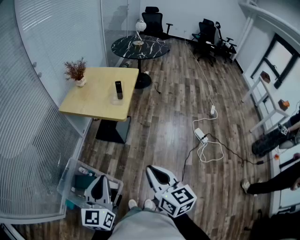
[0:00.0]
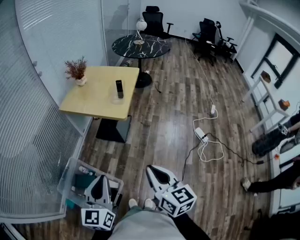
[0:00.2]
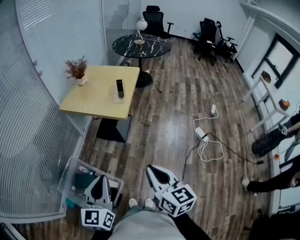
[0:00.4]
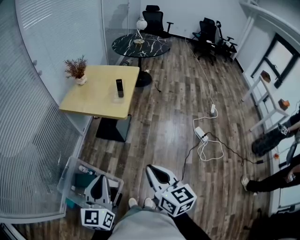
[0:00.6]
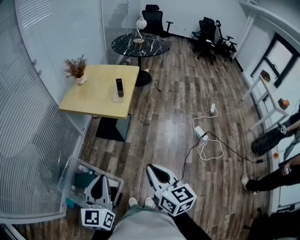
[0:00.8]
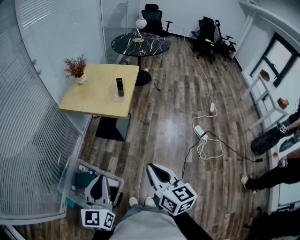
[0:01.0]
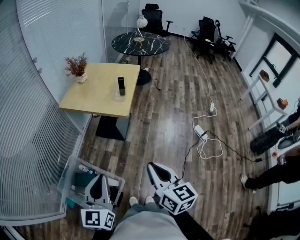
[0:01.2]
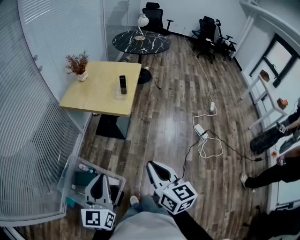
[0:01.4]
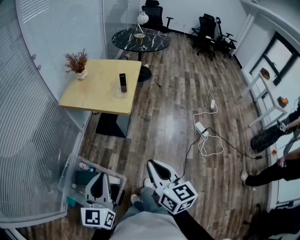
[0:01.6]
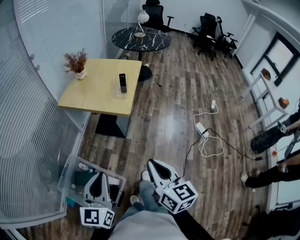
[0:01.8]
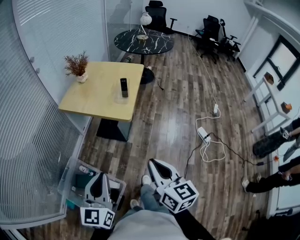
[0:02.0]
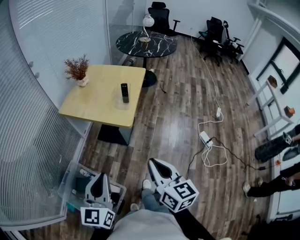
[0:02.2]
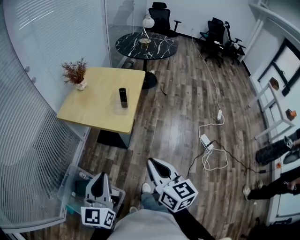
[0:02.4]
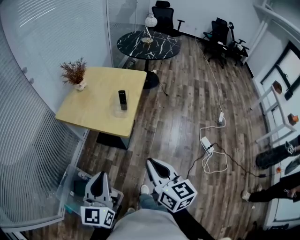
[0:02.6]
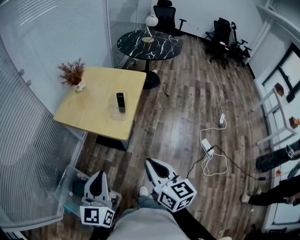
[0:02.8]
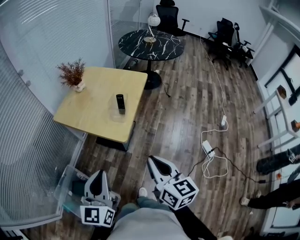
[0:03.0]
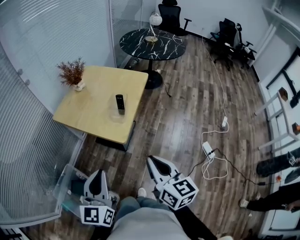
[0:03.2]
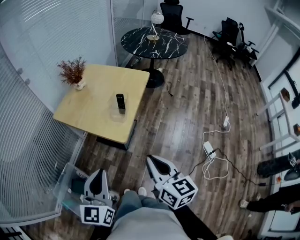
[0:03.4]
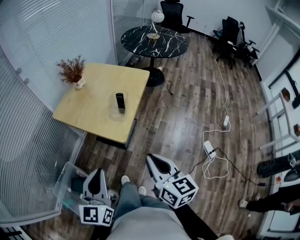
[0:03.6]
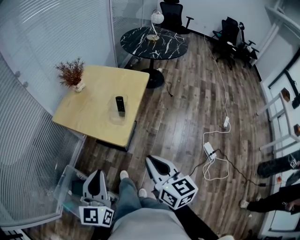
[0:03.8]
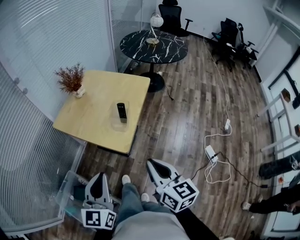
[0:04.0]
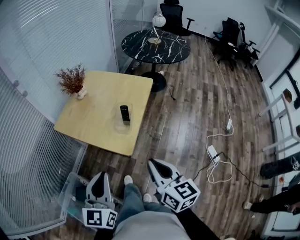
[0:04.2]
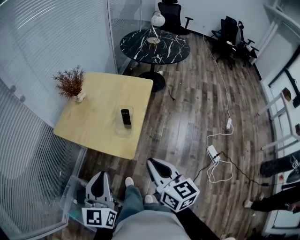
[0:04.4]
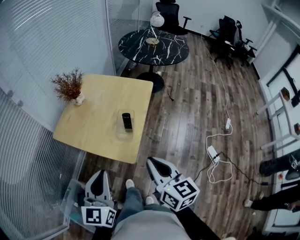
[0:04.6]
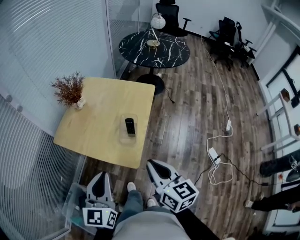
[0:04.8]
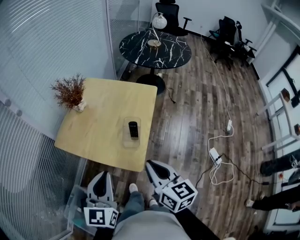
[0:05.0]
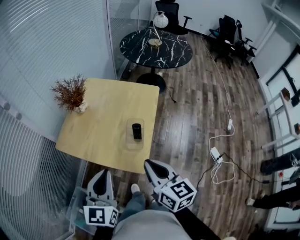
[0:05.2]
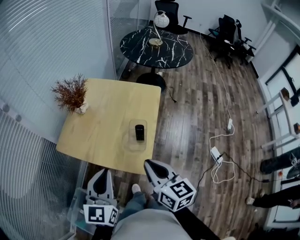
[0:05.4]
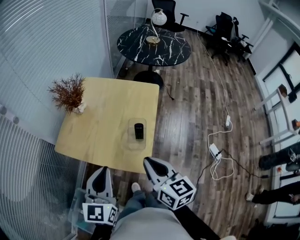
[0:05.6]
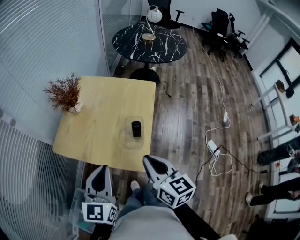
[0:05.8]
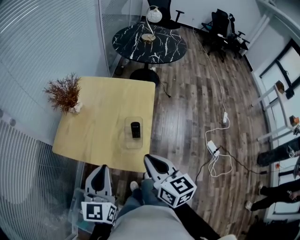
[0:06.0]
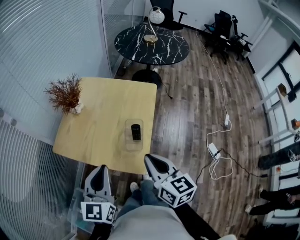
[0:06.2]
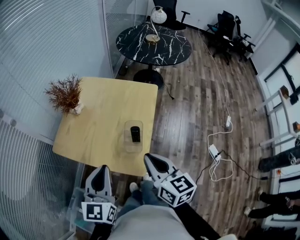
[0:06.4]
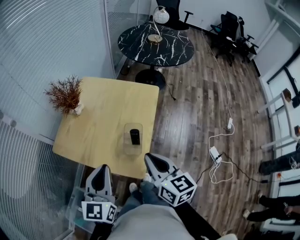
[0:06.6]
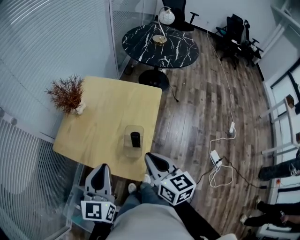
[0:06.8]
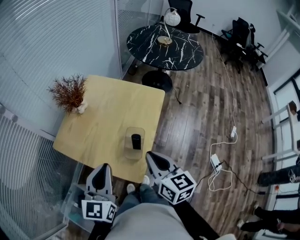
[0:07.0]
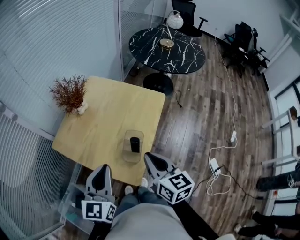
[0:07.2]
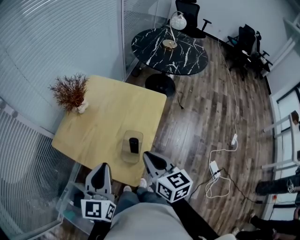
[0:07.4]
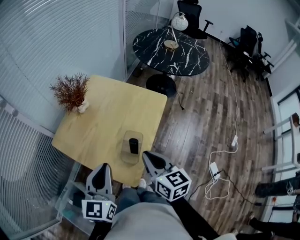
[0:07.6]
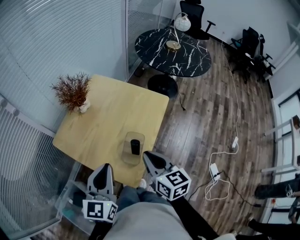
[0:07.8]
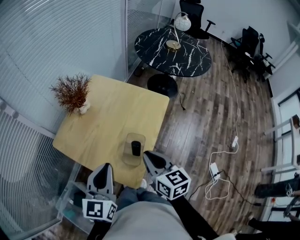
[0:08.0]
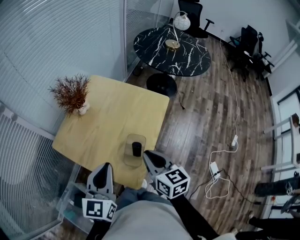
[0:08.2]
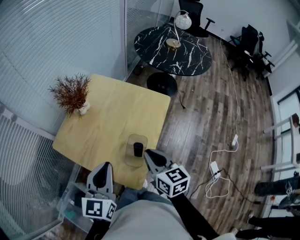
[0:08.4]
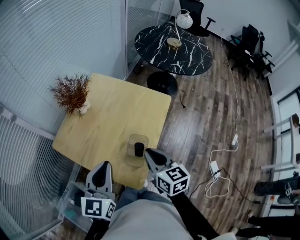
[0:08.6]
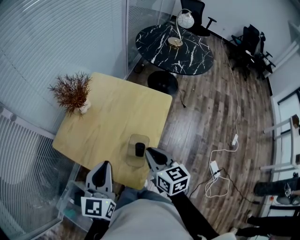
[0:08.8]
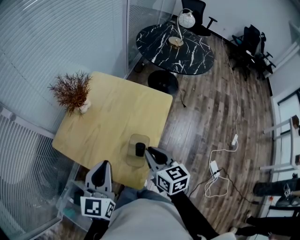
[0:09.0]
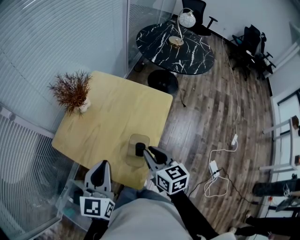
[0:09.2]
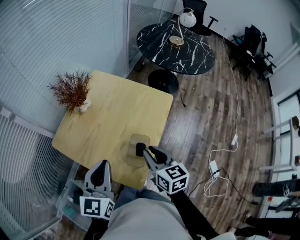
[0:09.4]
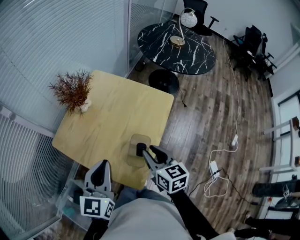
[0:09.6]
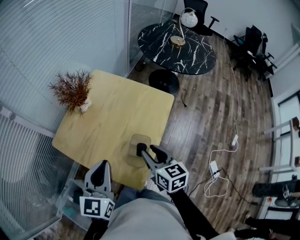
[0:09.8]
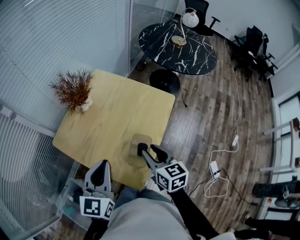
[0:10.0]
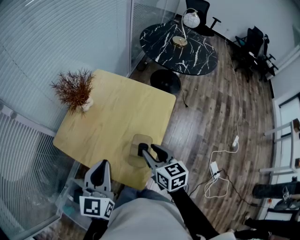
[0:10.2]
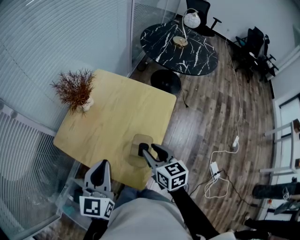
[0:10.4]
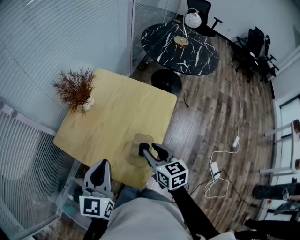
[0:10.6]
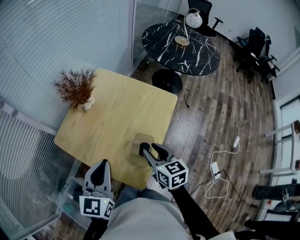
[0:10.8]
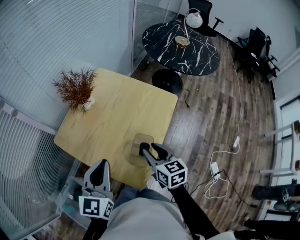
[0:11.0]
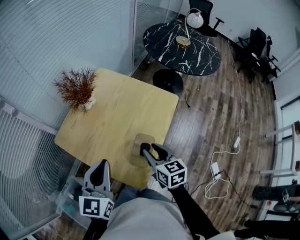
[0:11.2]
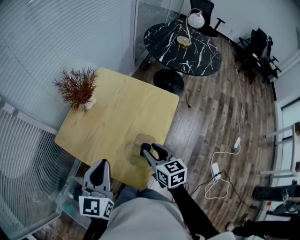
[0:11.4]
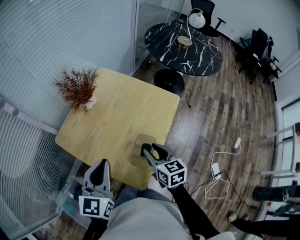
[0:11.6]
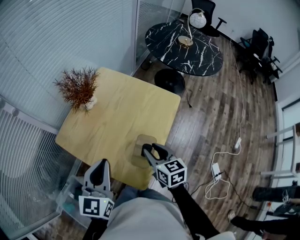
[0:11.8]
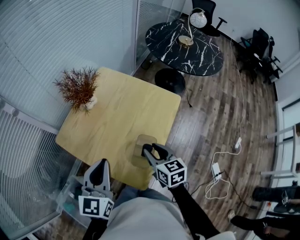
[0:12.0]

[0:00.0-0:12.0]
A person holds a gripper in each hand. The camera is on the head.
0:00.0 to 0:01.6: The grippers make only small movements.
0:01.6 to 0:03.0: Both grippers travel together forward and to the right, about 25 cm.
0:03.0 to 0:04.4: Both grippers move forward, some 10 cm.
0:04.4 to 0:06.0: The left gripper is displaced forward by roughly 15 cm, while the right gripper travels forward and to the left by some 15 cm.
0:06.0 to 0:07.6: The right gripper is displaced forward and to the right by roughly 10 cm, while the left gripper goes about 10 cm to the right and forward.
0:07.6 to 0:09.0: The left gripper changes place by roughly 5 cm, while the right gripper ends up about 5 cm from where it was.
0:09.0 to 0:10.4: The right gripper opens up.
0:10.4 to 0:12.0: There are only small adjustments of the grippers.

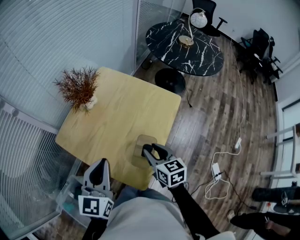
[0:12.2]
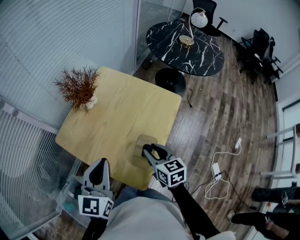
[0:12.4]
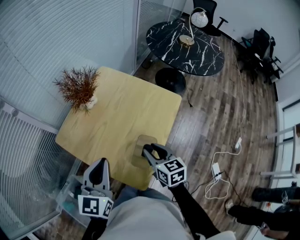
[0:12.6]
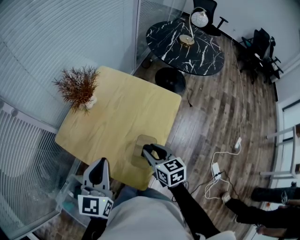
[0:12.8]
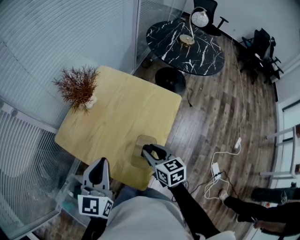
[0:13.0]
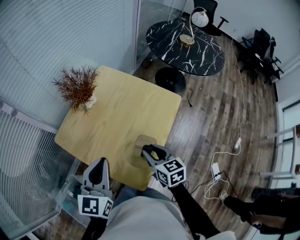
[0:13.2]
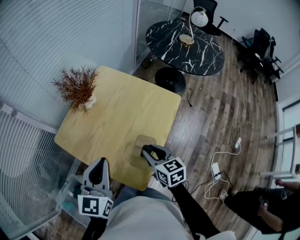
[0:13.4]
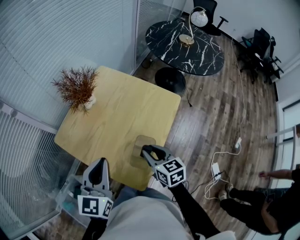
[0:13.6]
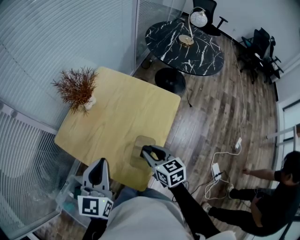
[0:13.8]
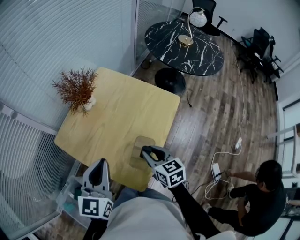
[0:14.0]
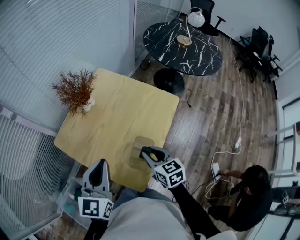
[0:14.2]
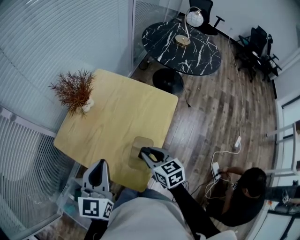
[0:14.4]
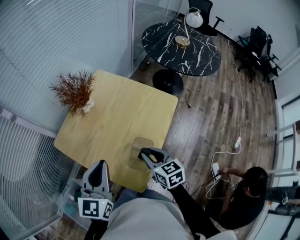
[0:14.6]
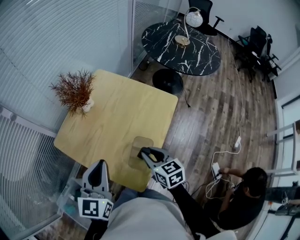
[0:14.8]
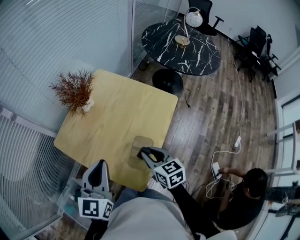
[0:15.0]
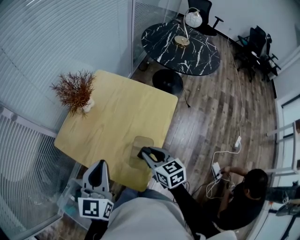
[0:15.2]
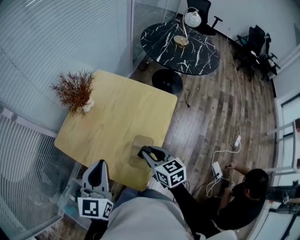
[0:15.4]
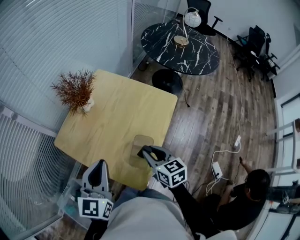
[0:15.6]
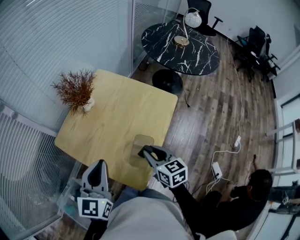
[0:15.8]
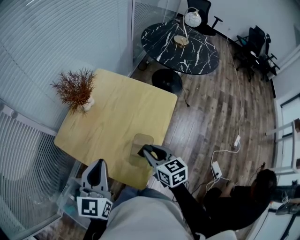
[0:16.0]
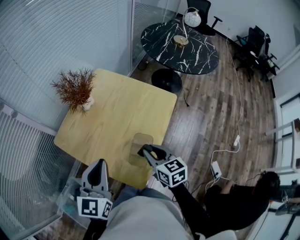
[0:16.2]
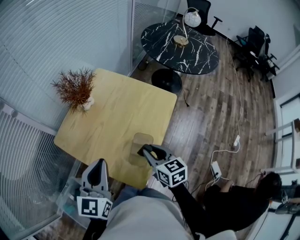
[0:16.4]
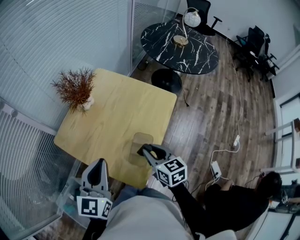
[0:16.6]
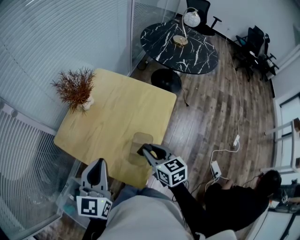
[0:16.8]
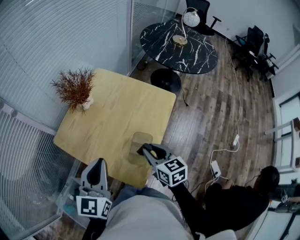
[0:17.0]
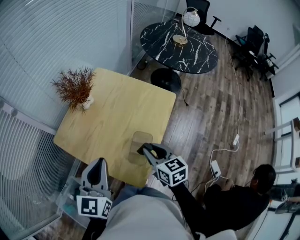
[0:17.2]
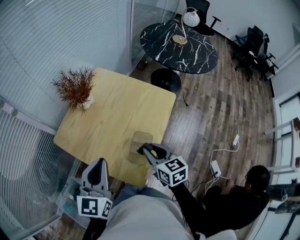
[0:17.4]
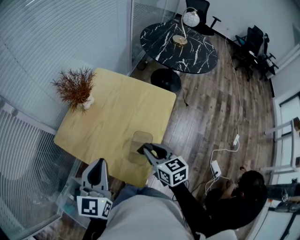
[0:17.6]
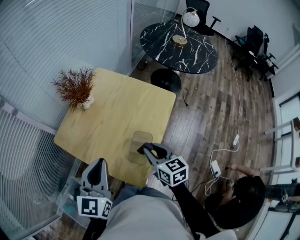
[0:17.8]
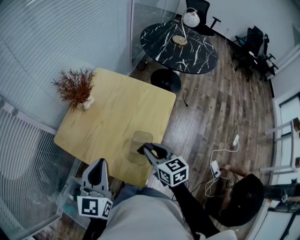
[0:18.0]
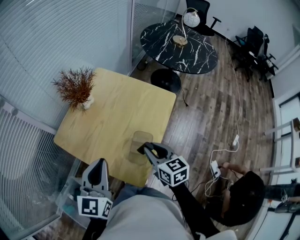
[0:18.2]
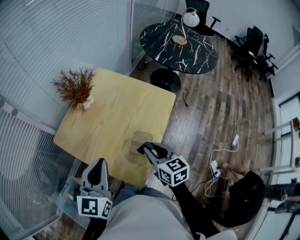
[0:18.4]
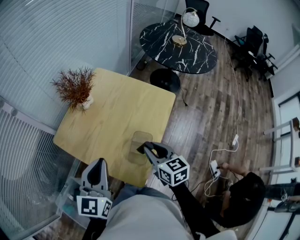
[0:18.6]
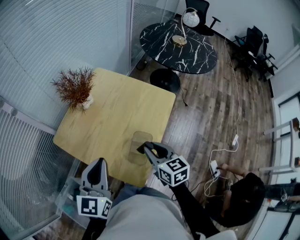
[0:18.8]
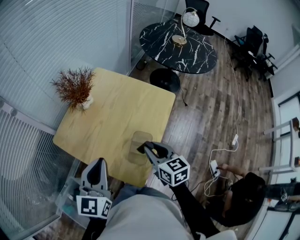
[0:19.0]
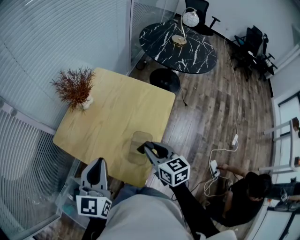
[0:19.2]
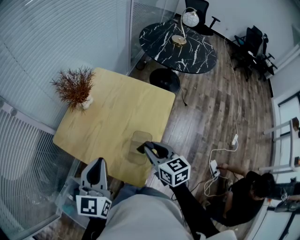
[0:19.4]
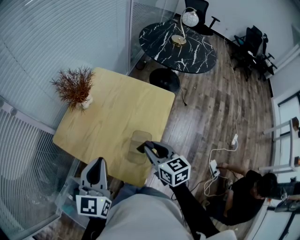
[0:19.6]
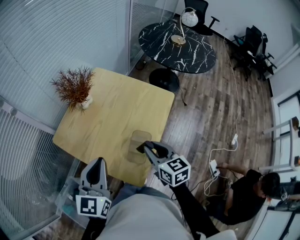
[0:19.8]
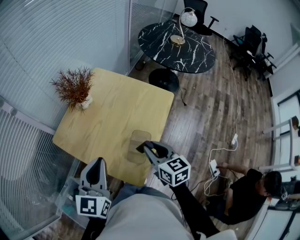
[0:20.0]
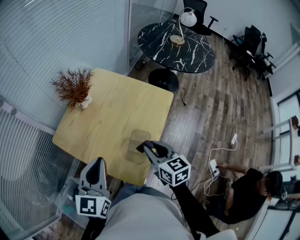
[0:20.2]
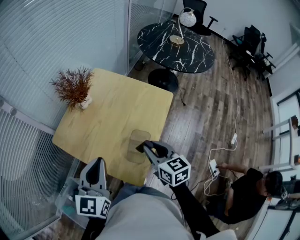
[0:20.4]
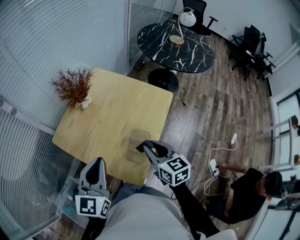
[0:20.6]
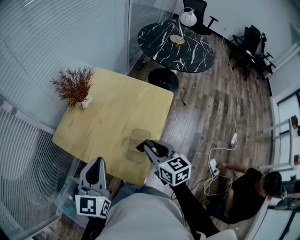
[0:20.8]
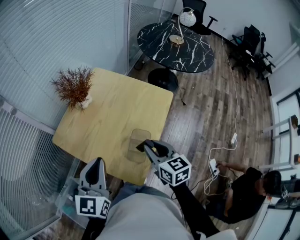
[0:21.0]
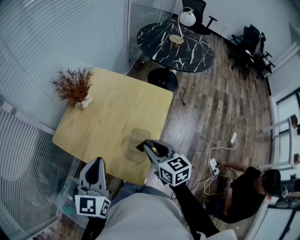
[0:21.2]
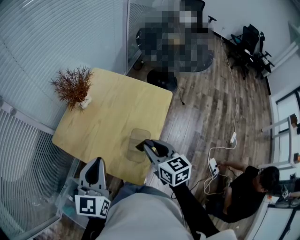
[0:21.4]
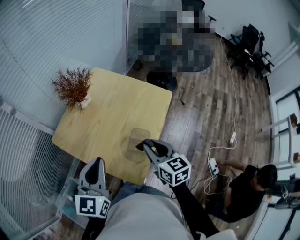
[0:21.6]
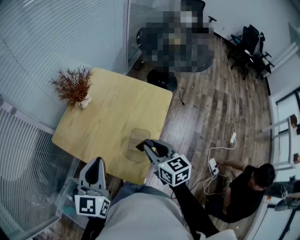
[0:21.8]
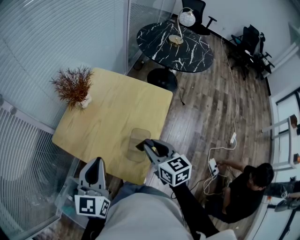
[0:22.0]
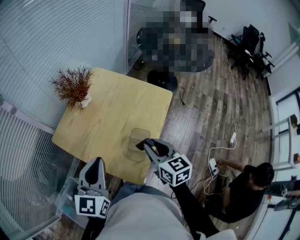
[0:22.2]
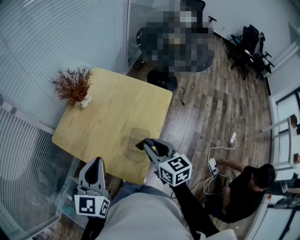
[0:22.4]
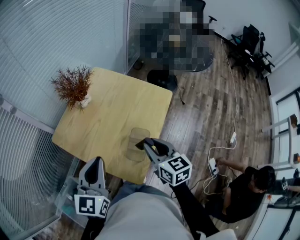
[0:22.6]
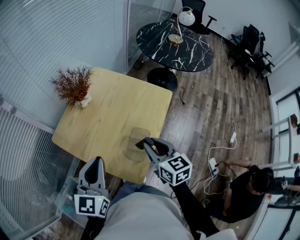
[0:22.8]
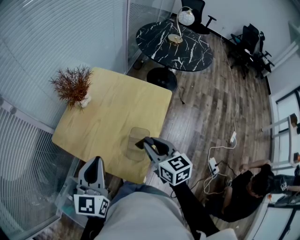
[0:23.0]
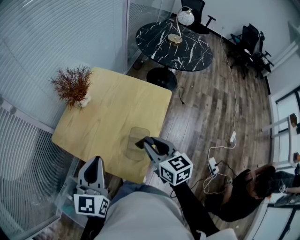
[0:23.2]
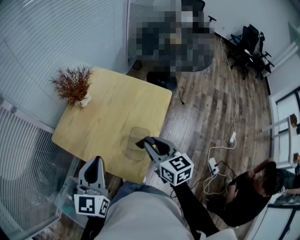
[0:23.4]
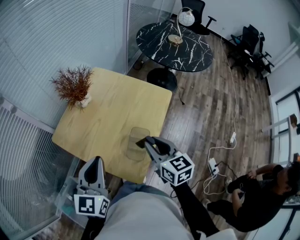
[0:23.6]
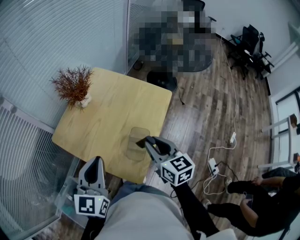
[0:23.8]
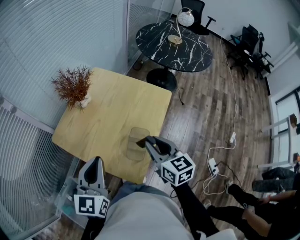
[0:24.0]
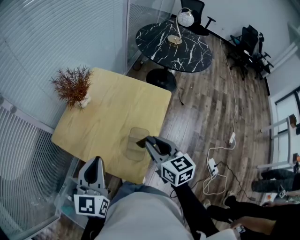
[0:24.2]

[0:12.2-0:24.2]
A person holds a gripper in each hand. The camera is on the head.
0:12.2 to 0:13.8: Both grippers stay put.
0:13.8 to 0:15.2: Both grippers stay about where they are.
0:15.2 to 0:16.6: The two grippers keep their place.
0:16.6 to 0:18.2: Both grippers stay about where they are.
0:18.2 to 0:19.8: Both grippers stay about where they are.
0:19.8 to 0:21.2: Both grippers stay put.
0:21.2 to 0:22.6: Neither gripper changes place.
0:22.6 to 0:24.2: The grippers move only a little.
